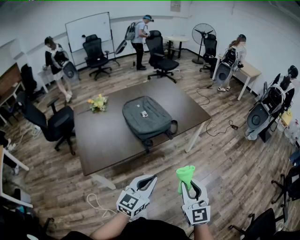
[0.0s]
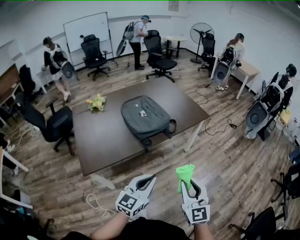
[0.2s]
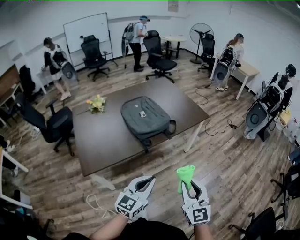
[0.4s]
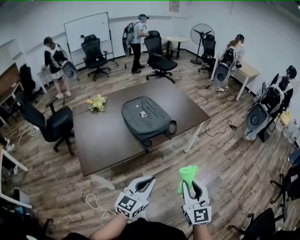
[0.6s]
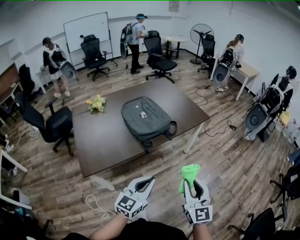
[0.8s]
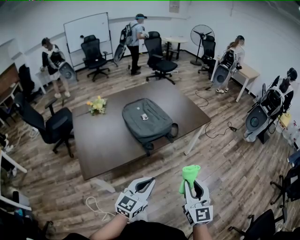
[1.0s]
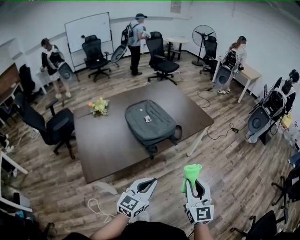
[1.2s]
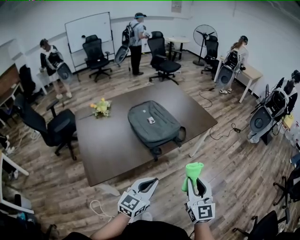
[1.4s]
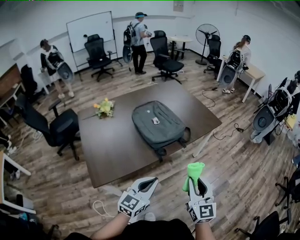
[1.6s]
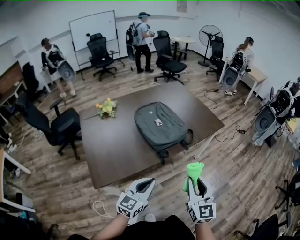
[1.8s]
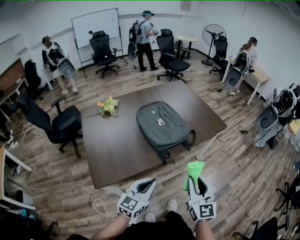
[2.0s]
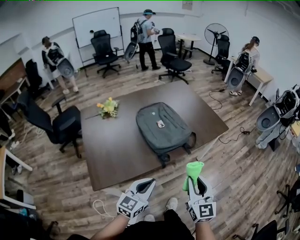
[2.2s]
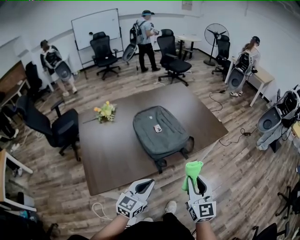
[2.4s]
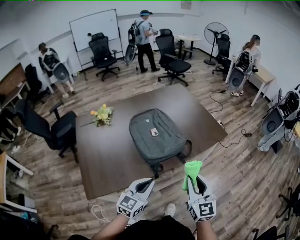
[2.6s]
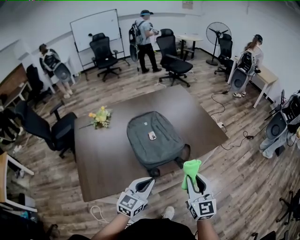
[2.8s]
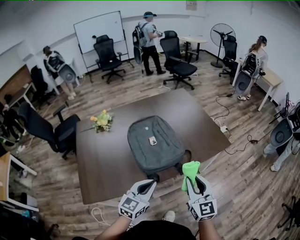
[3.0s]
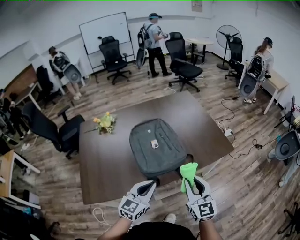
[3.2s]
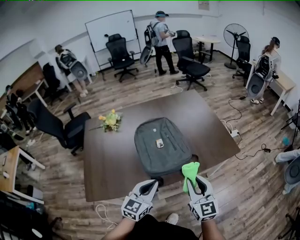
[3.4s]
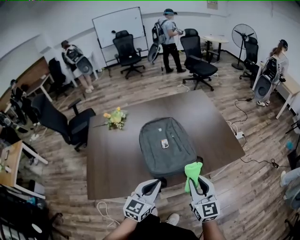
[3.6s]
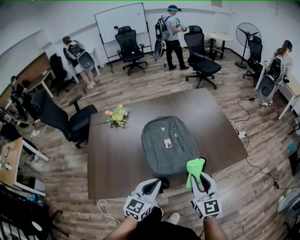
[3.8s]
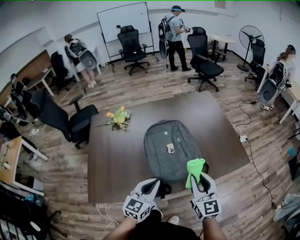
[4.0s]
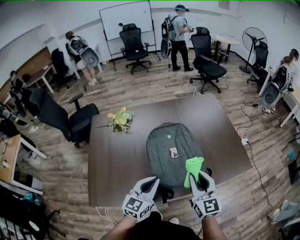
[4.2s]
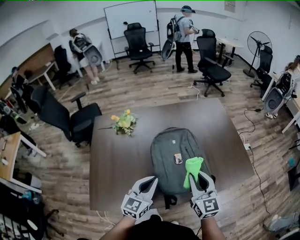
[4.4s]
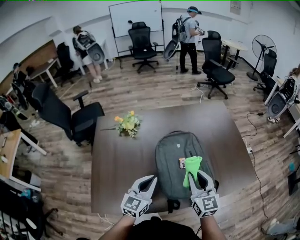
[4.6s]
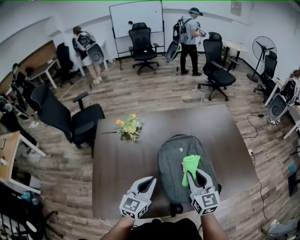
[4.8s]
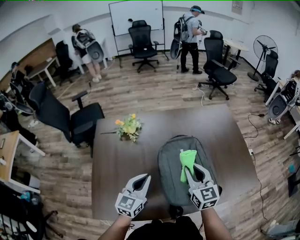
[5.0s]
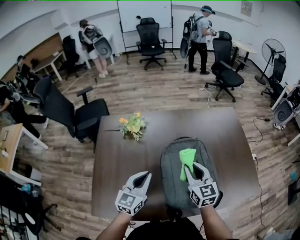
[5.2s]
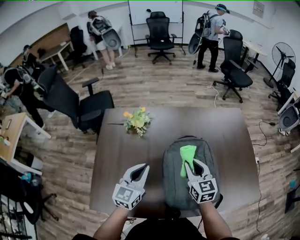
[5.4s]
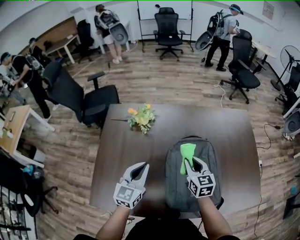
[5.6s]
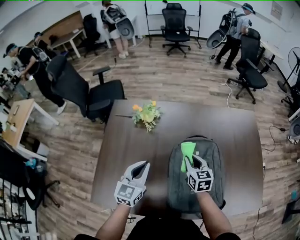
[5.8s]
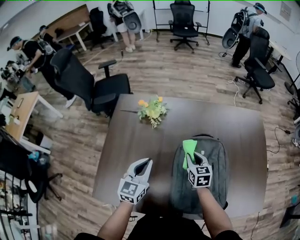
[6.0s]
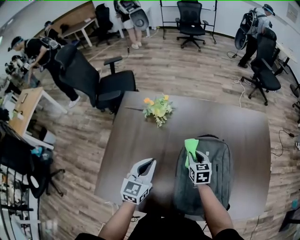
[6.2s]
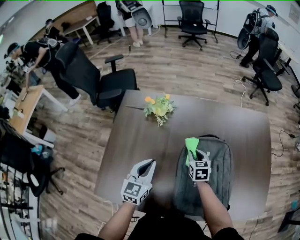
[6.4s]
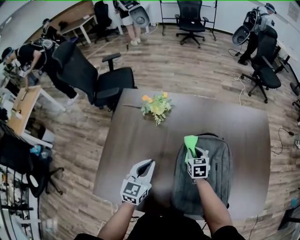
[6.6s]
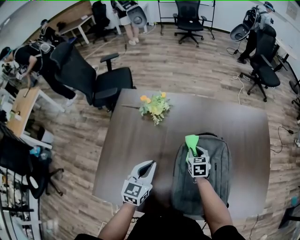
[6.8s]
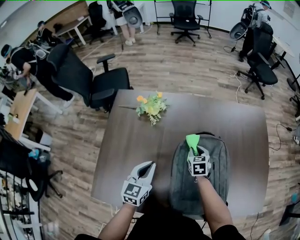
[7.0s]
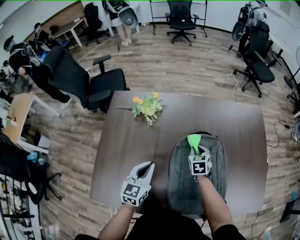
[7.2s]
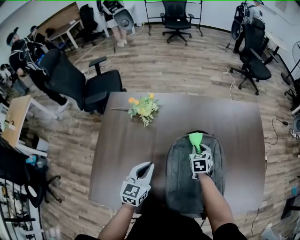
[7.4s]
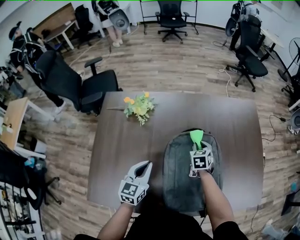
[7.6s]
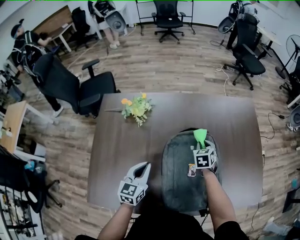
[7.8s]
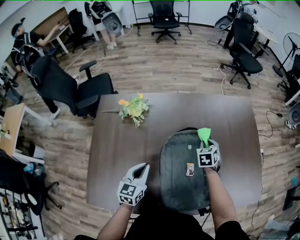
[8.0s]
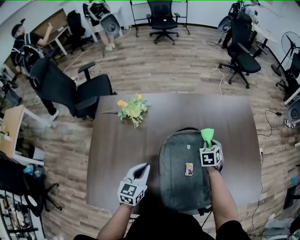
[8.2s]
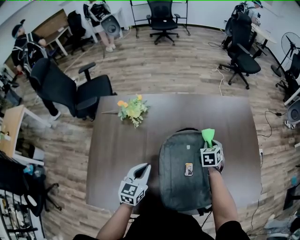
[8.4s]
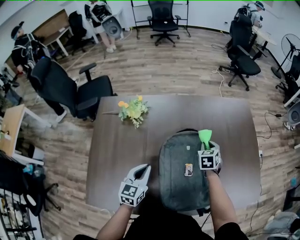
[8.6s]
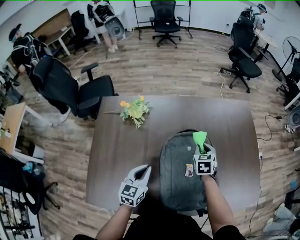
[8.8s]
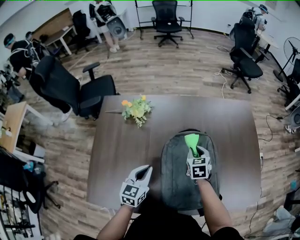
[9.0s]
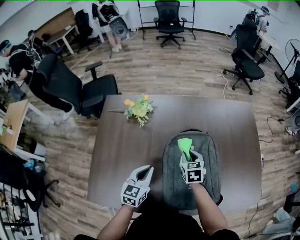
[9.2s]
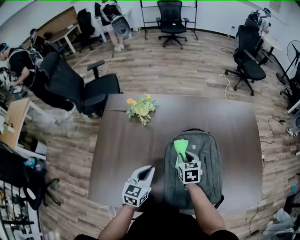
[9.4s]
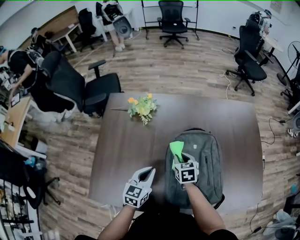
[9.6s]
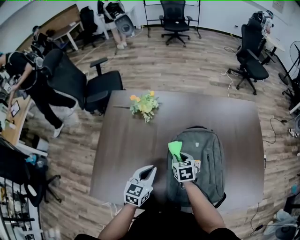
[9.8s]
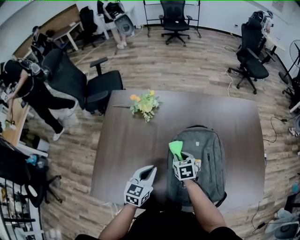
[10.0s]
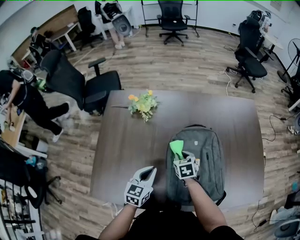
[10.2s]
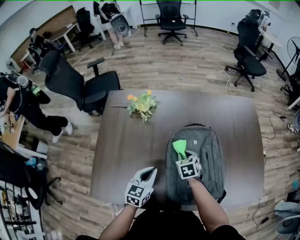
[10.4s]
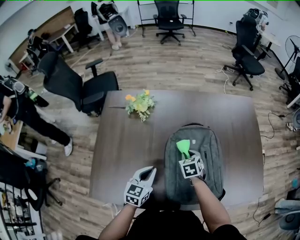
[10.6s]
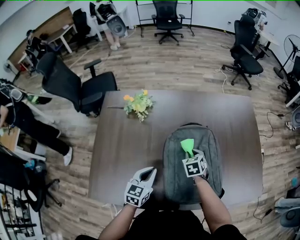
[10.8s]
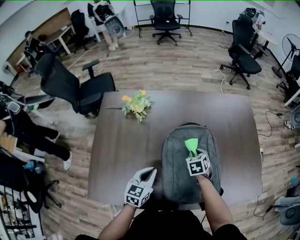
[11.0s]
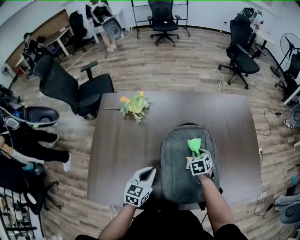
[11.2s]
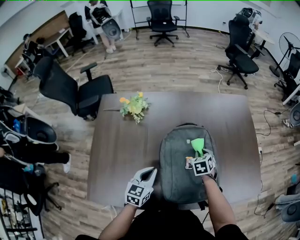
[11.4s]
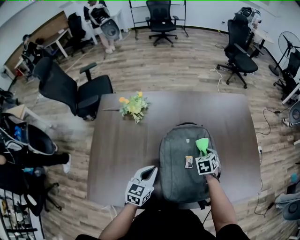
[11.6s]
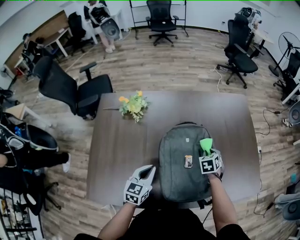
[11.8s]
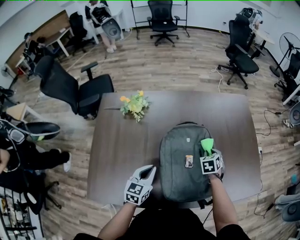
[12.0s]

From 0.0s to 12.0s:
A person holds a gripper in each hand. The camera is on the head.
From 0.0s to 1.6s: The right gripper goes approximately 10 cm to the left and forward. Meanwhile the left gripper is displaced to the left by some 10 cm.
From 1.6s to 3.0s: The two grippers go some 20 cm forward.
From 3.0s to 4.4s: Both grippers travel together forward and to the left, approximately 20 cm.
From 4.4s to 6.0s: The right gripper moves forward, downward and to the left, roughly 30 cm, and changes its angle by roughly 30 degrees. Meanwhile the left gripper shifts about 20 cm to the left and forward, and swivels some 20 degrees.
From 6.0s to 7.6s: The right gripper is displaced to the right and forward by approximately 10 cm, and changes its angle by some 20 degrees. The left gripper moves roughly 5 cm.
From 7.6s to 9.0s: The right gripper travels to the right and back again, about 10 cm each way.
From 9.0s to 10.4s: The right gripper heads to the left, downward and backward, covering about 10 cm.
From 10.4s to 12.0s: The right gripper is displaced to the right by approximately 20 cm, and rotates roughly 20 degrees.

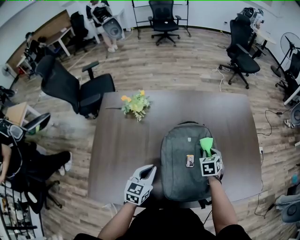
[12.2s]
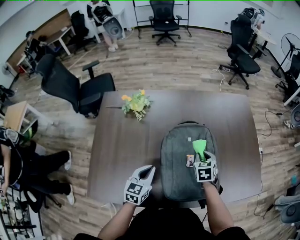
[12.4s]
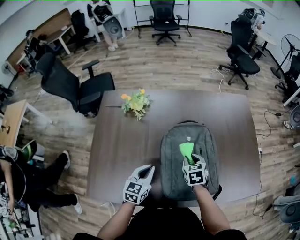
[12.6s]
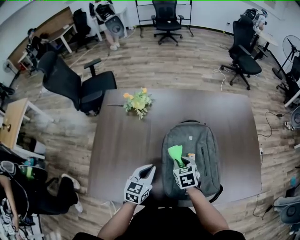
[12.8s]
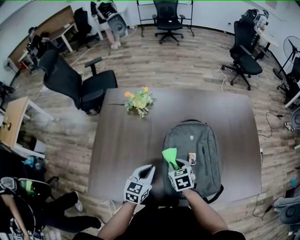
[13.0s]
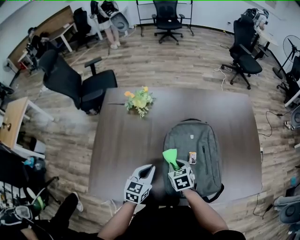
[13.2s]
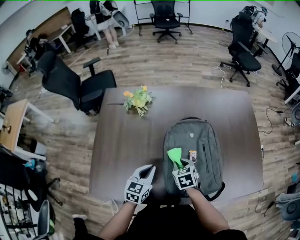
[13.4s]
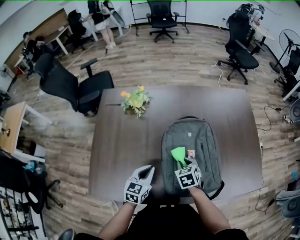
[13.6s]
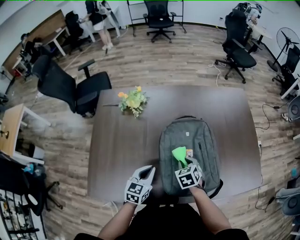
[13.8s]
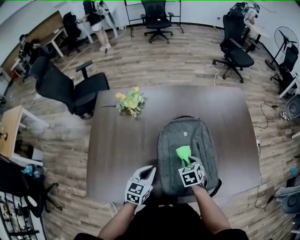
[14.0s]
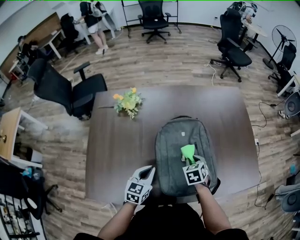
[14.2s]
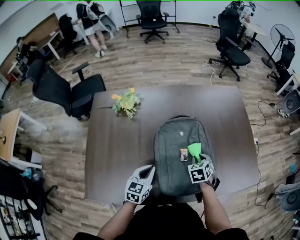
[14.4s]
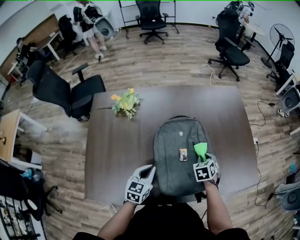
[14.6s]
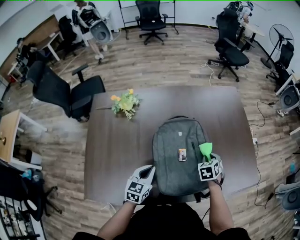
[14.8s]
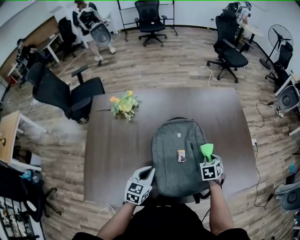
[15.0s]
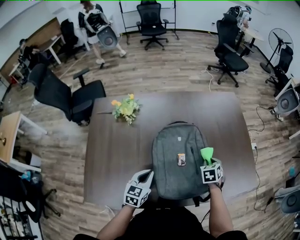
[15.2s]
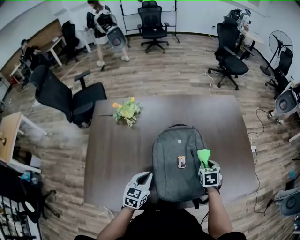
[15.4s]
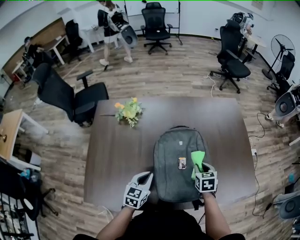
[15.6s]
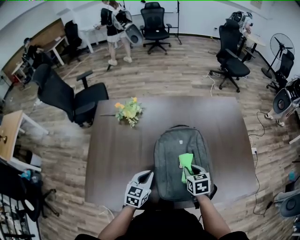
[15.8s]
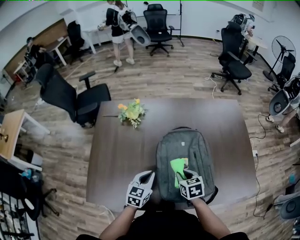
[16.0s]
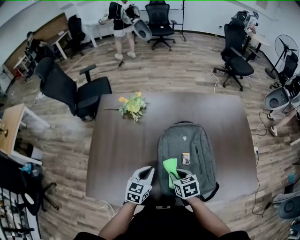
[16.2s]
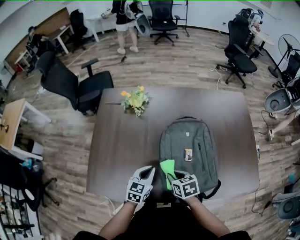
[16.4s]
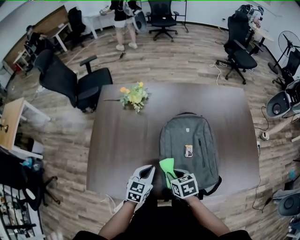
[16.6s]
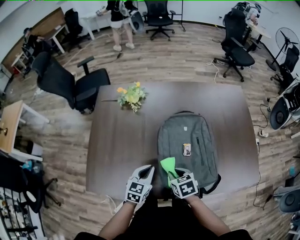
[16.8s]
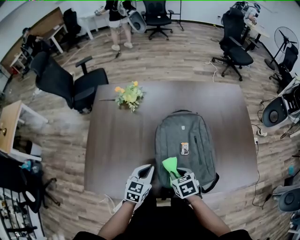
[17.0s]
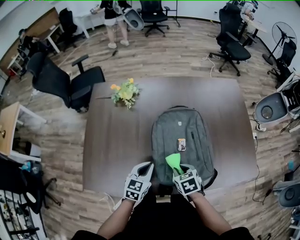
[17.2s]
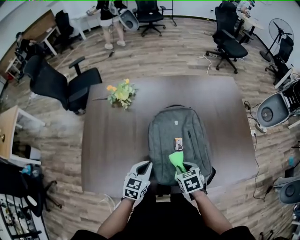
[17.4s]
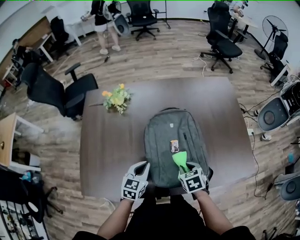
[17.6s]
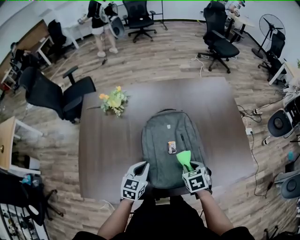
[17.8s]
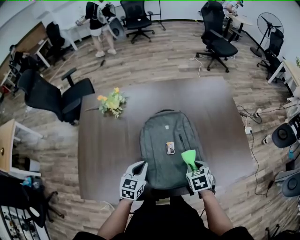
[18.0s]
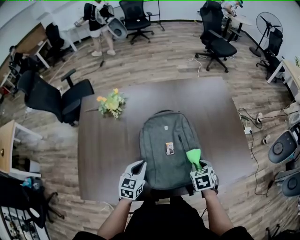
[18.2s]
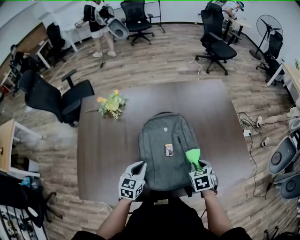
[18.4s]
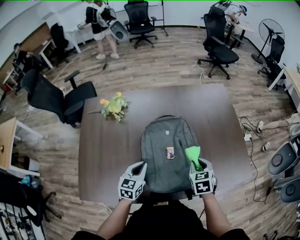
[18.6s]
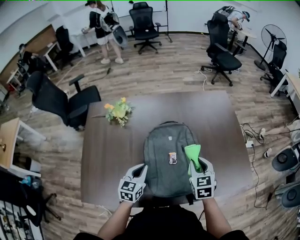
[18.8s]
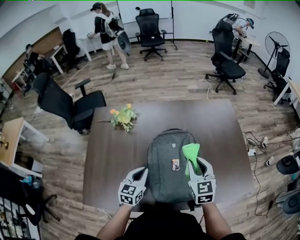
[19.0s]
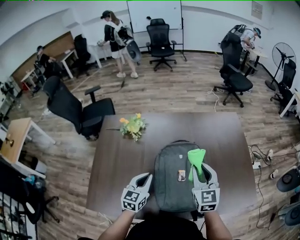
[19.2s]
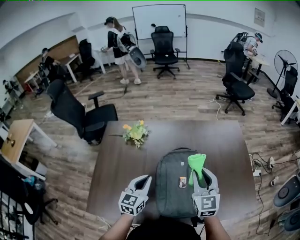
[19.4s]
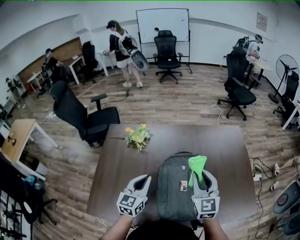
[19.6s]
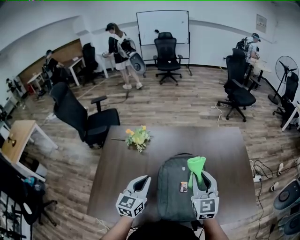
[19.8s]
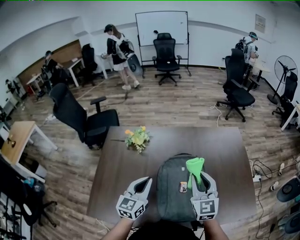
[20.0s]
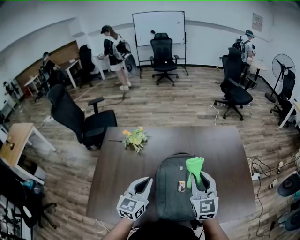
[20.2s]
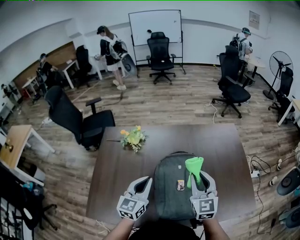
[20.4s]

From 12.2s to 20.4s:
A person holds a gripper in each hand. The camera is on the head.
From 12.2s to 13.8s: The right gripper shifts some 15 cm to the left and backward.
From 13.8s to 15.4s: The right gripper shifts some 15 cm to the right and forward, and rotates roughly 20 degrees.
From 15.4s to 17.2s: The right gripper moves about 20 cm, and changes its angle by some 20 degrees.
From 17.2s to 18.8s: The right gripper heads to the right, upward and forward, covering some 20 cm, and turns by about 30 degrees. The left gripper goes approximately 5 cm forward.
From 18.8s to 20.4s: The left gripper goes approximately 15 cm upward, while the right gripper goes approximately 15 cm upward and to the left, and changes its angle by about 30 degrees.

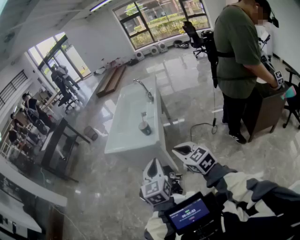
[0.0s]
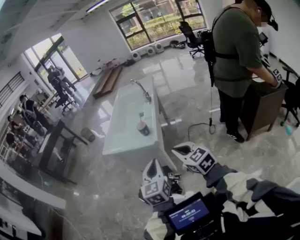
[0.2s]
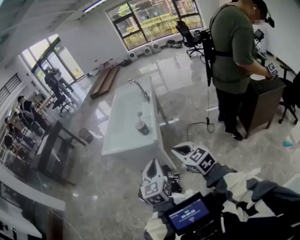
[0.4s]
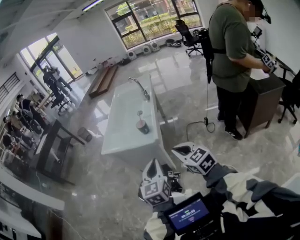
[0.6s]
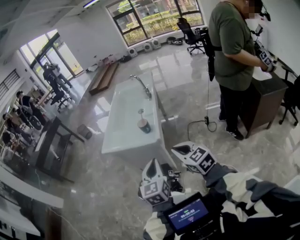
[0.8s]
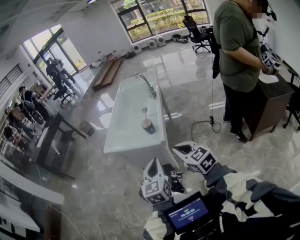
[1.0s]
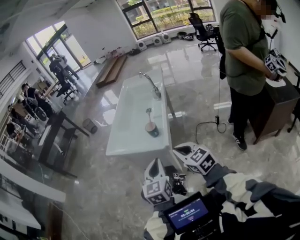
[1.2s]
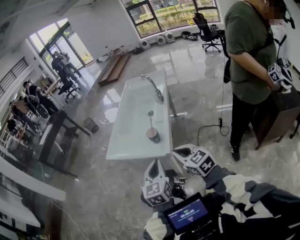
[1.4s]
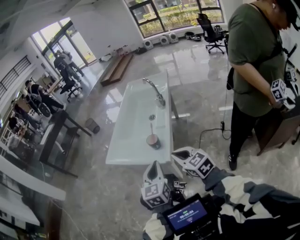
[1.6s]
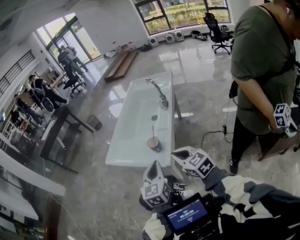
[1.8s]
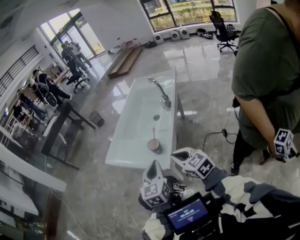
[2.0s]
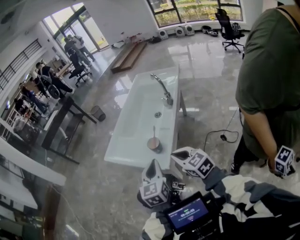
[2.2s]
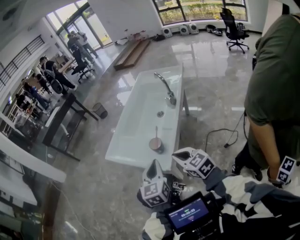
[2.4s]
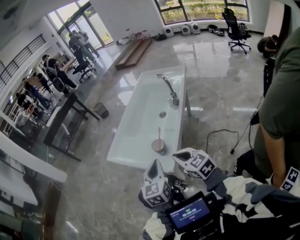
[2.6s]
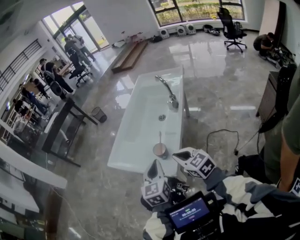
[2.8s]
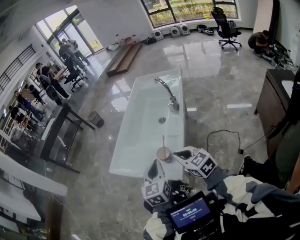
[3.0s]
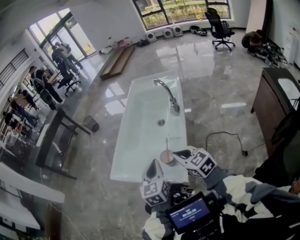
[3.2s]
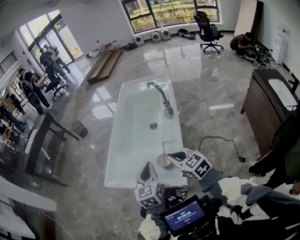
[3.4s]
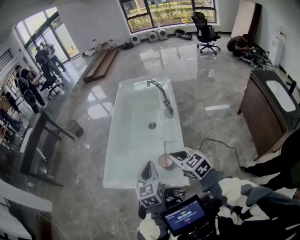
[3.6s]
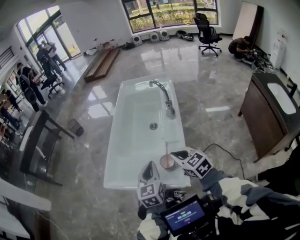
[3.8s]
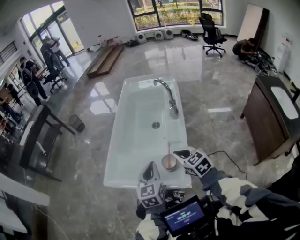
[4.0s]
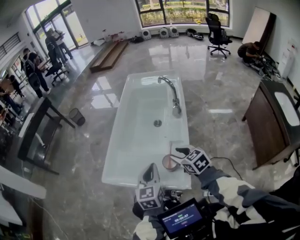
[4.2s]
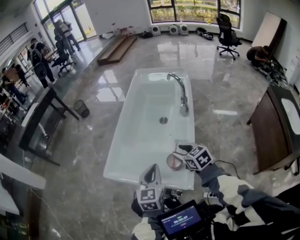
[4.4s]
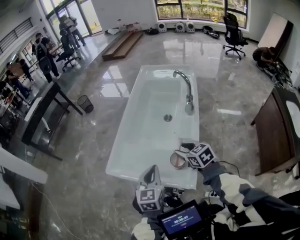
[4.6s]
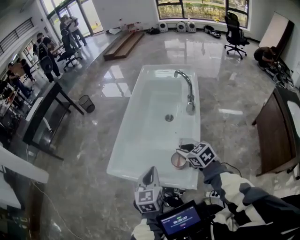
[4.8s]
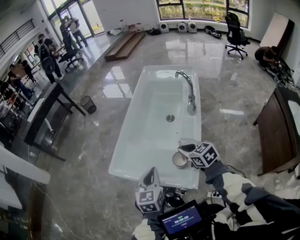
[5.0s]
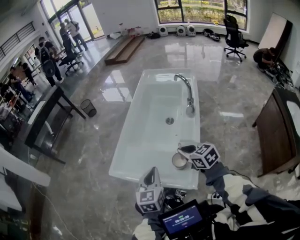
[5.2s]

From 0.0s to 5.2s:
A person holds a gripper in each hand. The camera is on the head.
From 0.0s to 1.8s: The two grippers go approximately 20 cm forward.
From 1.8s to 3.4s: The grippers both shift forward by some 15 cm.
From 3.4s to 5.2s: The right gripper shifts roughly 5 cm forward, and opens, then closes again. The left gripper heads to the left, covering approximately 5 cm.
